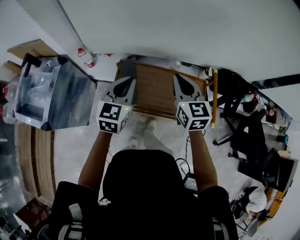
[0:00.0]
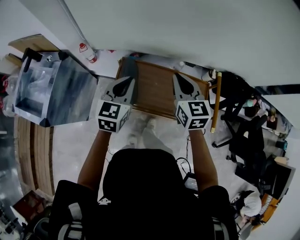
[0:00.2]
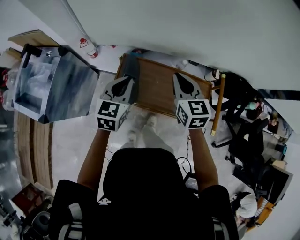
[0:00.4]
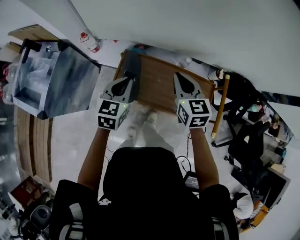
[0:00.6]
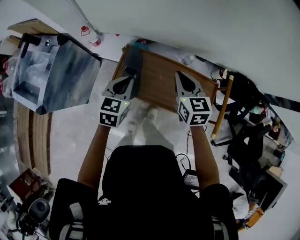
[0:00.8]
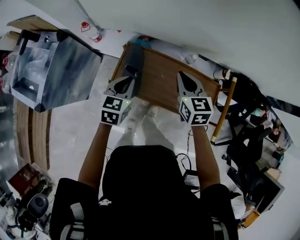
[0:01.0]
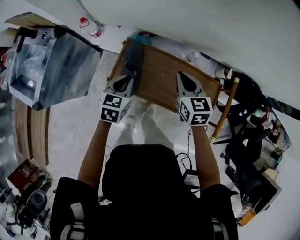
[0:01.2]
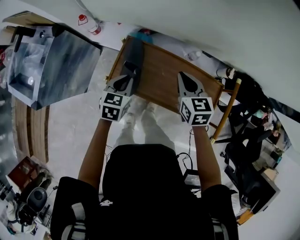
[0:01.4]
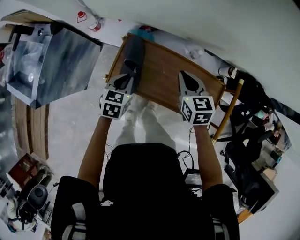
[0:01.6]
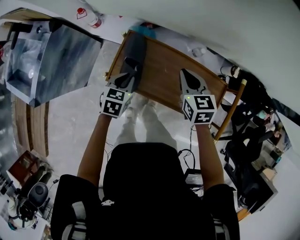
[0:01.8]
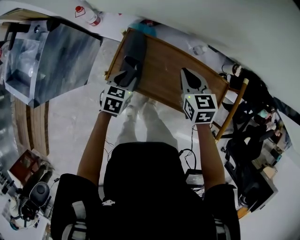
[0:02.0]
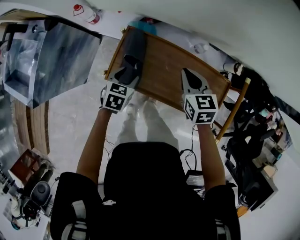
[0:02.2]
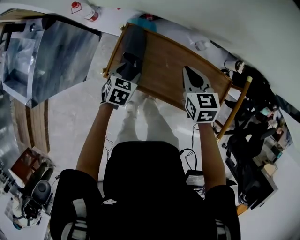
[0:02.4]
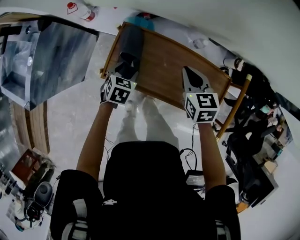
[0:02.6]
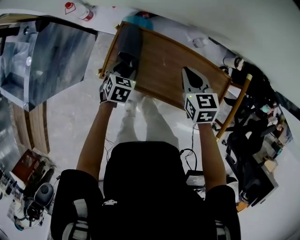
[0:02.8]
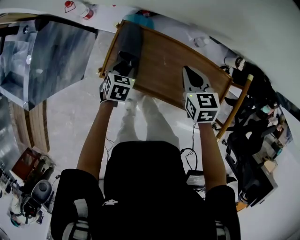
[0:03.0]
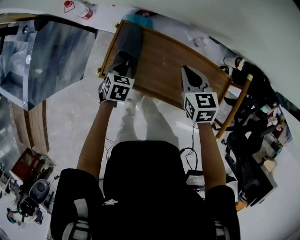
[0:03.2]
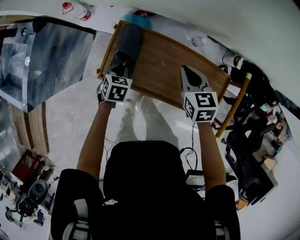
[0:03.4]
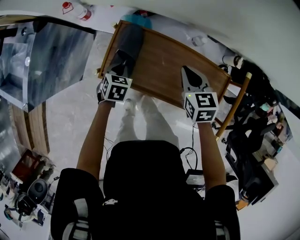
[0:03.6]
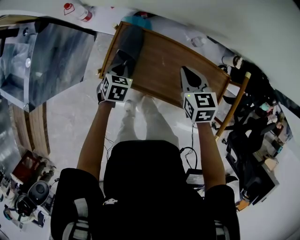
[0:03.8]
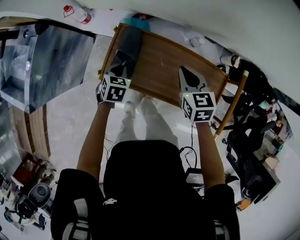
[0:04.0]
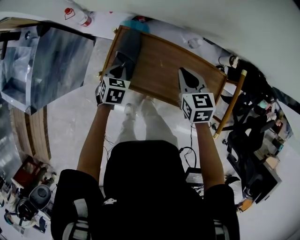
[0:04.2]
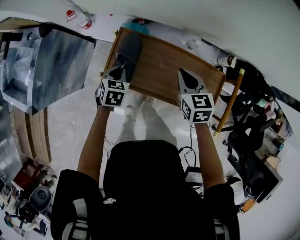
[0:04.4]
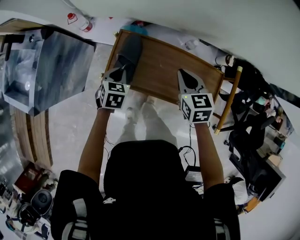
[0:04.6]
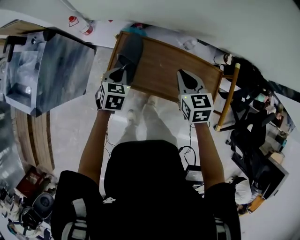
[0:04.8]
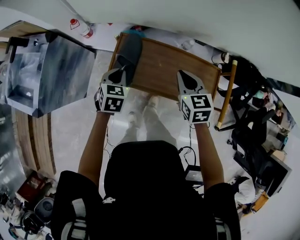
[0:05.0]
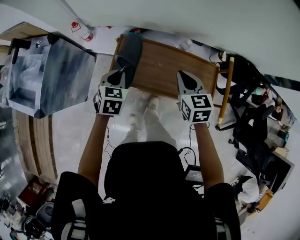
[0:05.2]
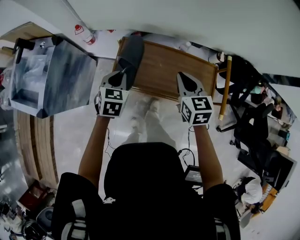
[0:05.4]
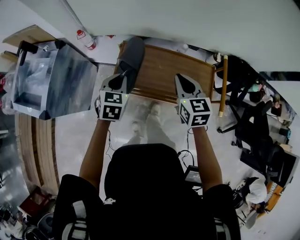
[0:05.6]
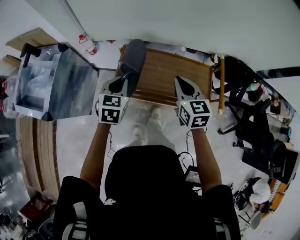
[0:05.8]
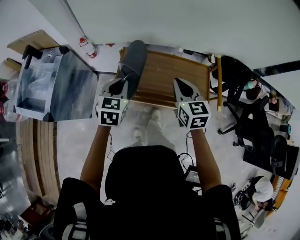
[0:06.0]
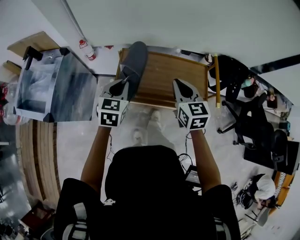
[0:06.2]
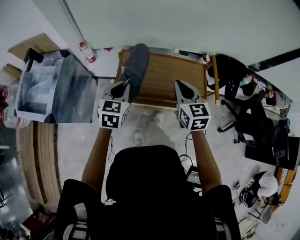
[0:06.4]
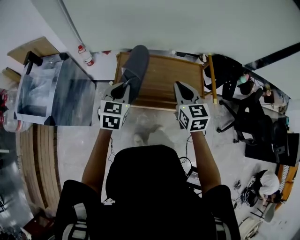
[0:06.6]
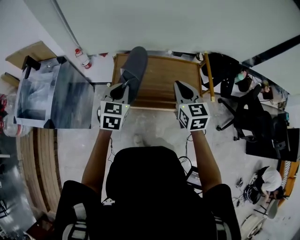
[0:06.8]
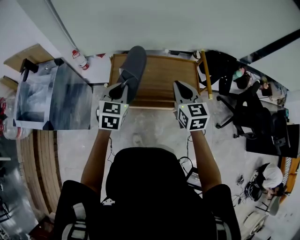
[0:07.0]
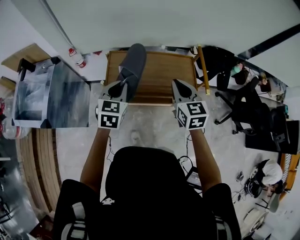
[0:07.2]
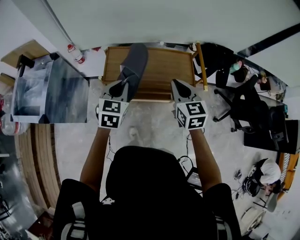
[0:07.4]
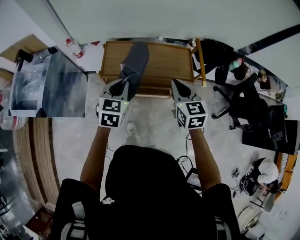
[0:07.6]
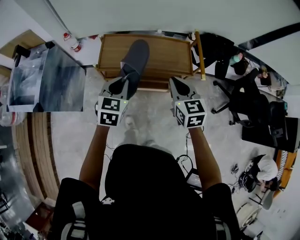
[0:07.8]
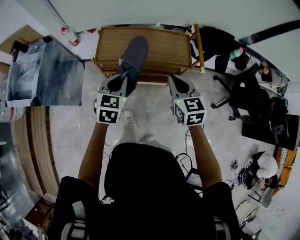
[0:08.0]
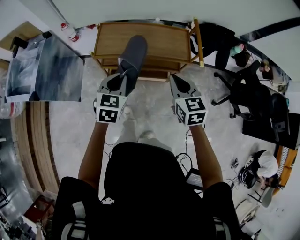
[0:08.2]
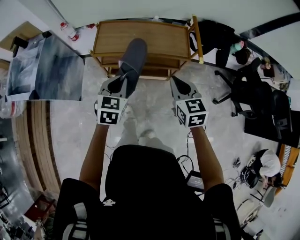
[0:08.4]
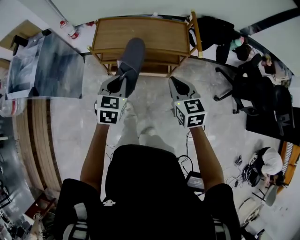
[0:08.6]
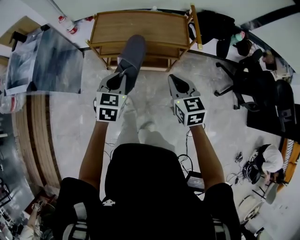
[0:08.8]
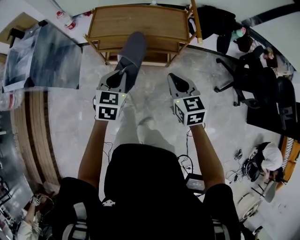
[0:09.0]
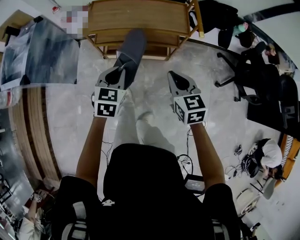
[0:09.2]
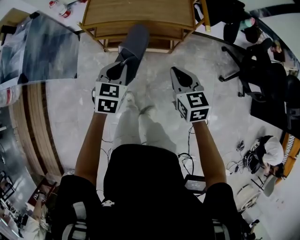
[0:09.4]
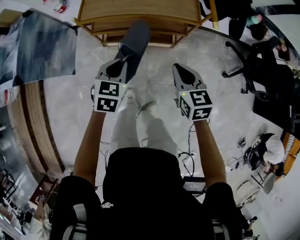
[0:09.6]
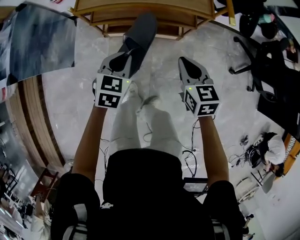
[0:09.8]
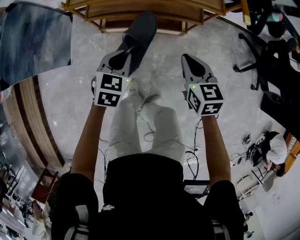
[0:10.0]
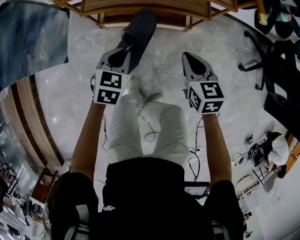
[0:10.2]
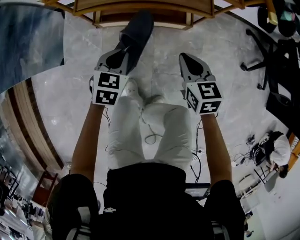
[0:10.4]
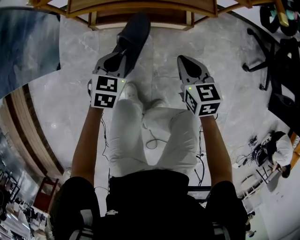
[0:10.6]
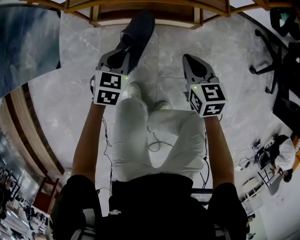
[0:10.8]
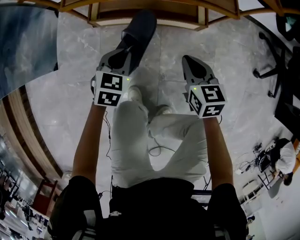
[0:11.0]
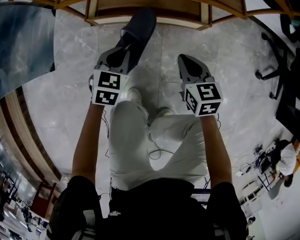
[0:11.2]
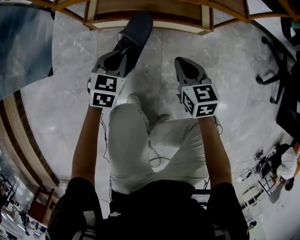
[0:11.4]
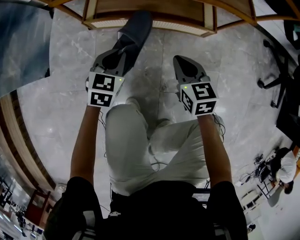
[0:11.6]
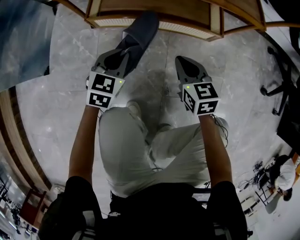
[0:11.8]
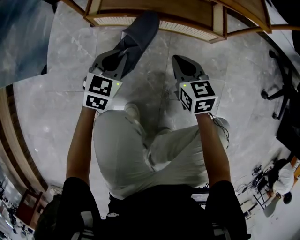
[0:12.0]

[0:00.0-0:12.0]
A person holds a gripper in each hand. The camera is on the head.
0:00.0 to 0:01.6: The left gripper moves downward, roughly 25 cm, and tilts its fingers about 30 degrees downward. Meanwhile the right gripper heads downward and forward, covering approximately 20 cm, and changes its angle by some 20 degrees.
0:01.6 to 0:03.0: The right gripper moves downward, some 5 cm; the left gripper shifts about 10 cm downward, and opens.
0:03.0 to 0:04.4: The left gripper travels upward by approximately 5 cm, and closes its fingers.
0:04.4 to 0:06.0: The left gripper heads upward and backward, covering about 25 cm, and changes its angle by roughly 30 degrees, while the right gripper shifts roughly 25 cm backward and upward, and rotates approximately 20 degrees.
0:06.0 to 0:07.6: The two grippers go approximately 15 cm backward and to the right.
0:07.6 to 0:09.0: The left gripper is displaced backward, downward and to the right by roughly 20 cm. The right gripper moves backward and downward, approximately 20 cm.
0:09.0 to 0:10.4: The two grippers go some 35 cm downward.
0:10.4 to 0:12.0: Both grippers move downward, some 30 cm.

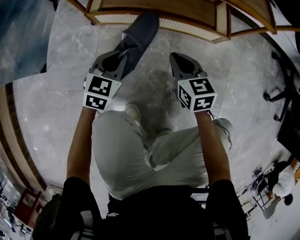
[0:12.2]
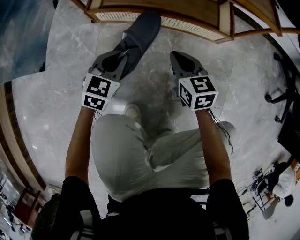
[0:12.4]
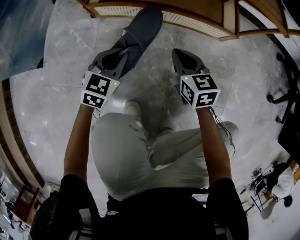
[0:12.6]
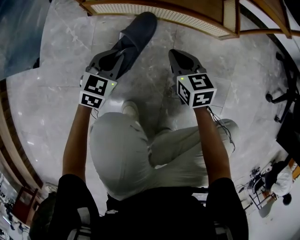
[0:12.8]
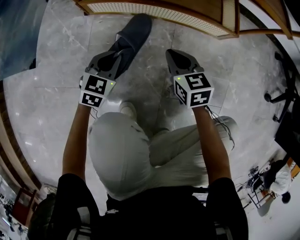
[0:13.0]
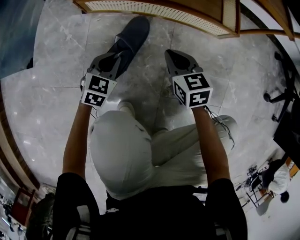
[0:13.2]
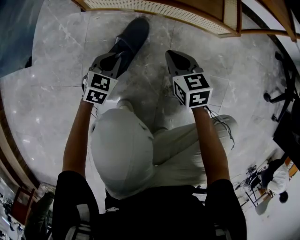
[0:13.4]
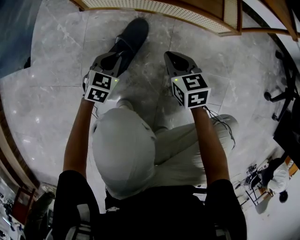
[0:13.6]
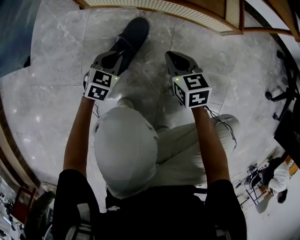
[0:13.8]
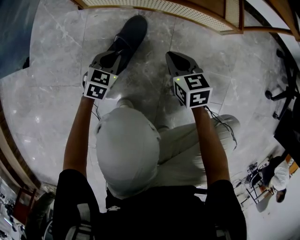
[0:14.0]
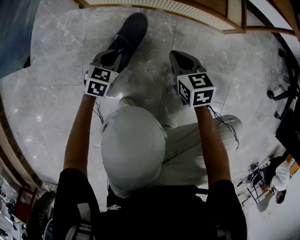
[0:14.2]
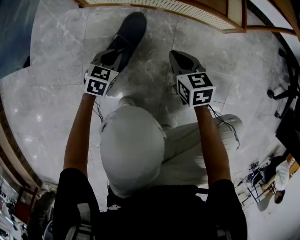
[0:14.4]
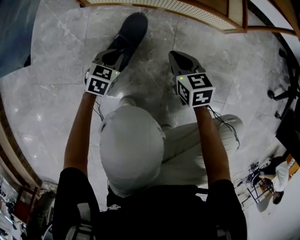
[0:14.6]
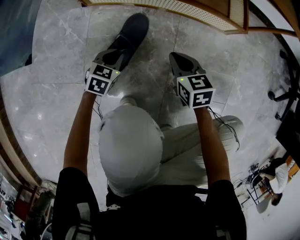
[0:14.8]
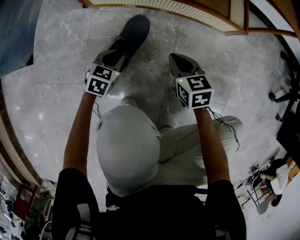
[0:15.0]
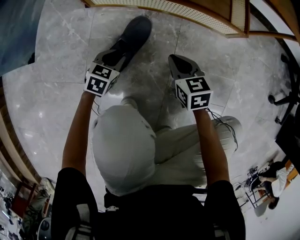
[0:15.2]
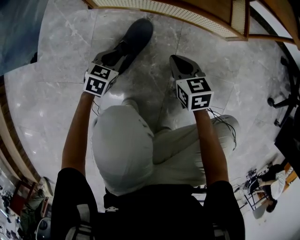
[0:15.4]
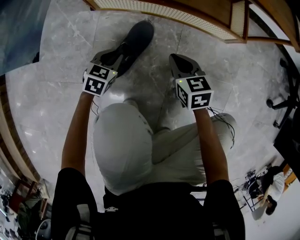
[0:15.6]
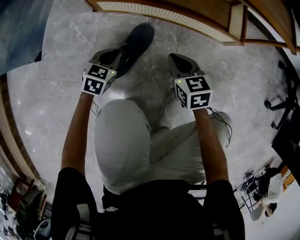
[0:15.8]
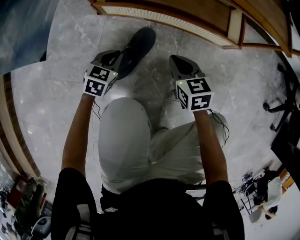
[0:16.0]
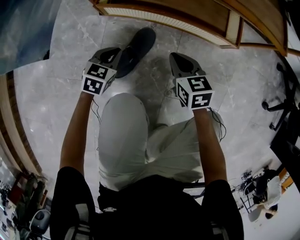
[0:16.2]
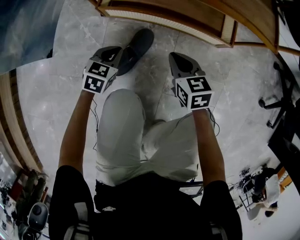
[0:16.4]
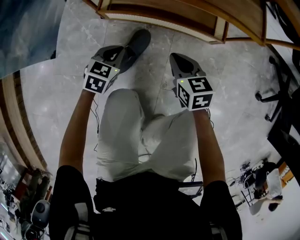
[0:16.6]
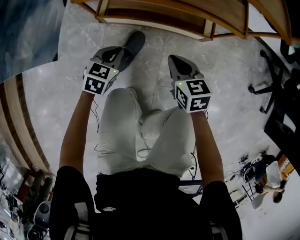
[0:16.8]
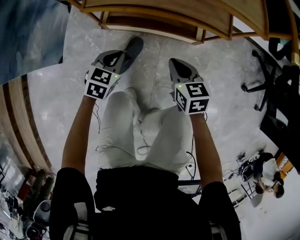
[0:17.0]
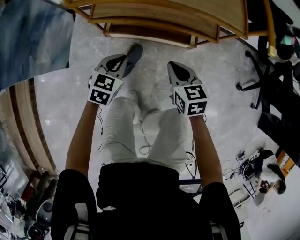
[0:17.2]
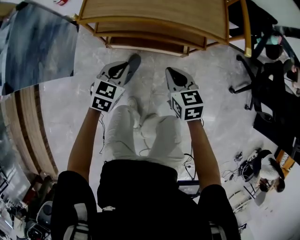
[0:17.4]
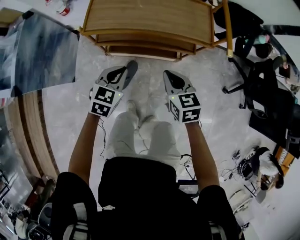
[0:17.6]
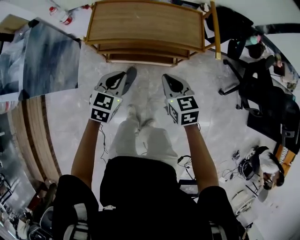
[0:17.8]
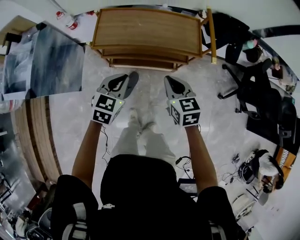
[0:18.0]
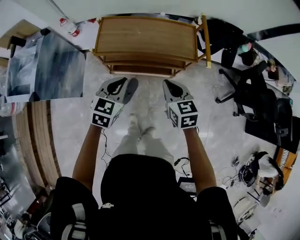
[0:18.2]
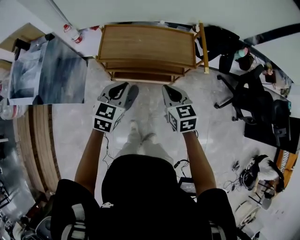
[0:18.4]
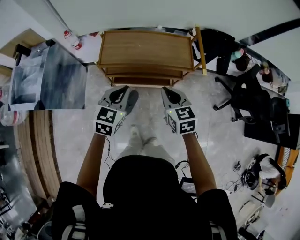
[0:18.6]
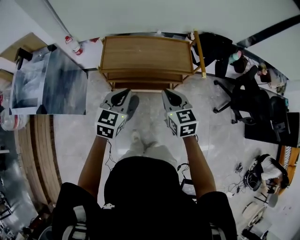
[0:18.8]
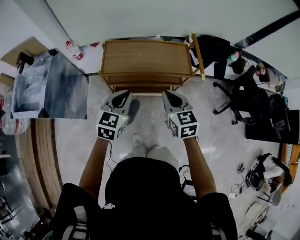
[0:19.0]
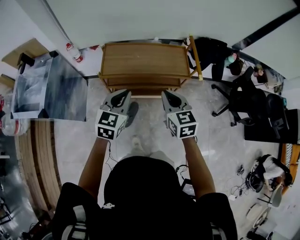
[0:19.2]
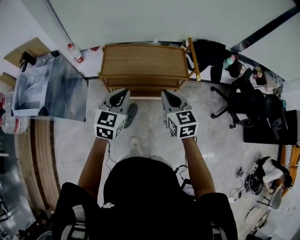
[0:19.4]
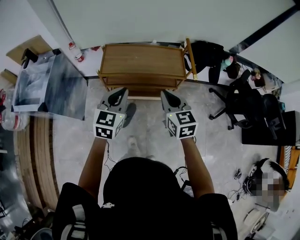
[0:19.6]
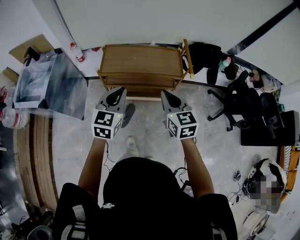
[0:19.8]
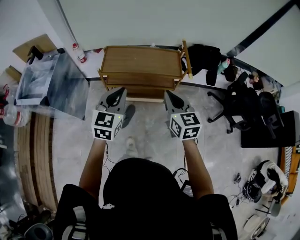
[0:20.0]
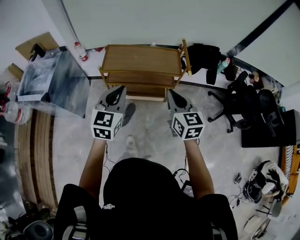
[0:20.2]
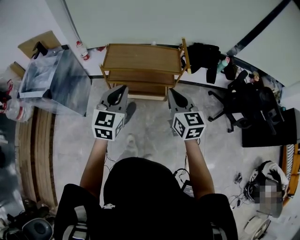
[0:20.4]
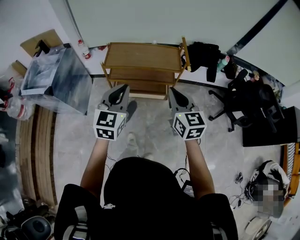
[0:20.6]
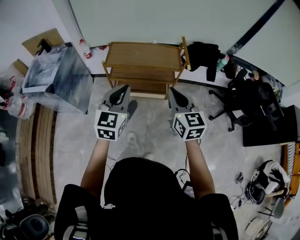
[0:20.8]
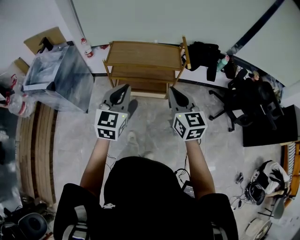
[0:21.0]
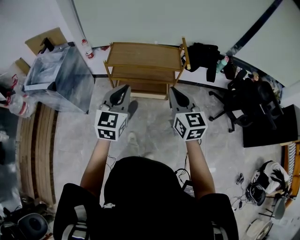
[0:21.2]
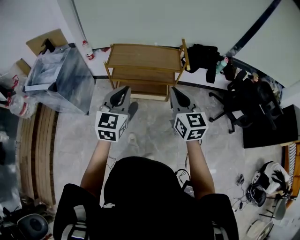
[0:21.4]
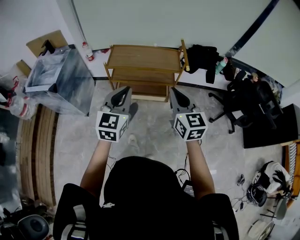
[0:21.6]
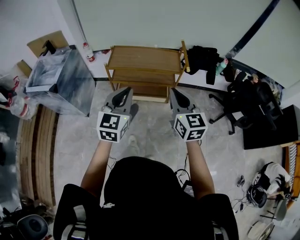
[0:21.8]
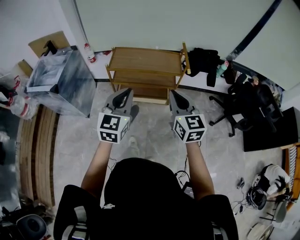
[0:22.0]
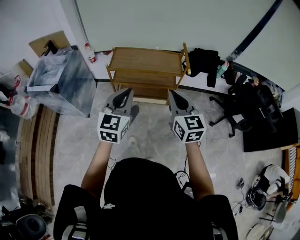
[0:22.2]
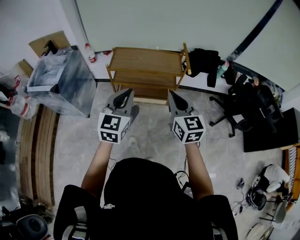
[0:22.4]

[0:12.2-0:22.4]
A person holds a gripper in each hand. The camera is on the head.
0:12.2 to 0:13.6: The left gripper goes about 15 cm downward, while the right gripper moves downward, approximately 10 cm.
0:13.6 to 0:15.2: The grippers move only a little.
0:15.2 to 0:16.6: Both grippers move upward, approximately 20 cm.
0:16.6 to 0:18.0: Both grippers move upward, roughly 60 cm.
0:18.0 to 0:19.4: The two grippers go about 15 cm upward.
0:19.4 to 0:21.0: Both grippers travel together backward and upward, roughly 20 cm.
0:21.0 to 0:22.4: The grippers move only a little.

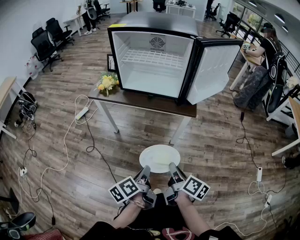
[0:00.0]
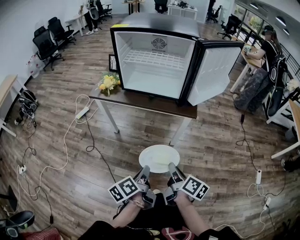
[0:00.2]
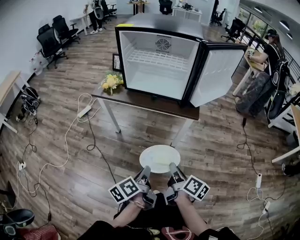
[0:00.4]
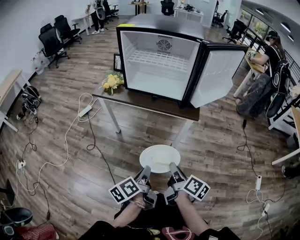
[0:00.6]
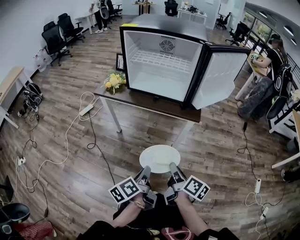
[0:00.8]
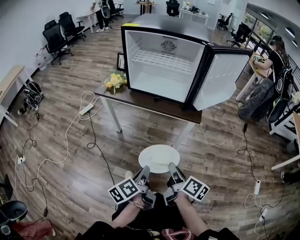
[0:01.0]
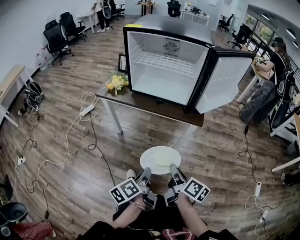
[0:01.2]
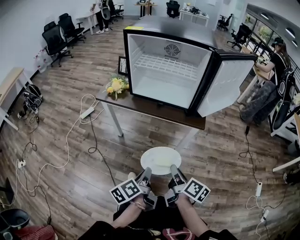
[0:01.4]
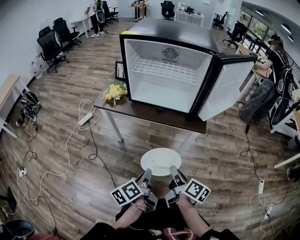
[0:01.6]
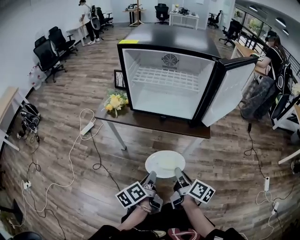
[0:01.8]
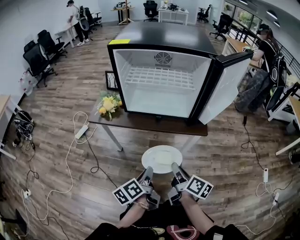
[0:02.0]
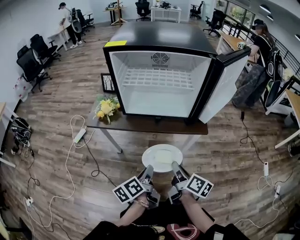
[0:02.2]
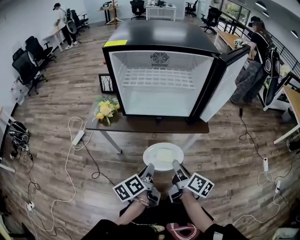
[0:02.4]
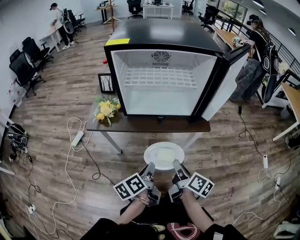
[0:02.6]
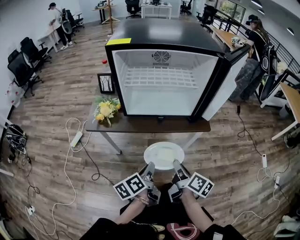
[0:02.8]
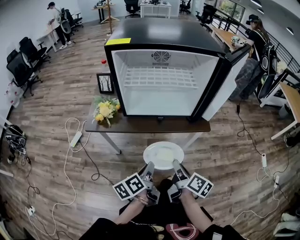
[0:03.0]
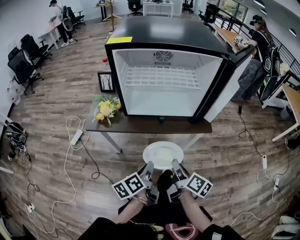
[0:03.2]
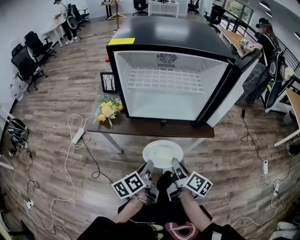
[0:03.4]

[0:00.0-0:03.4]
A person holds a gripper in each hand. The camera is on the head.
0:00.0 to 0:01.6: Both grippers move forward, about 5 cm.
0:01.6 to 0:03.4: Both grippers travel together forward and to the left, approximately 15 cm.
